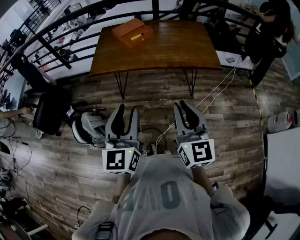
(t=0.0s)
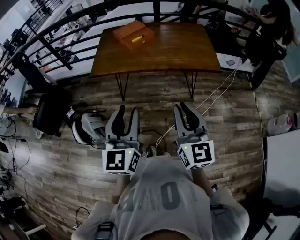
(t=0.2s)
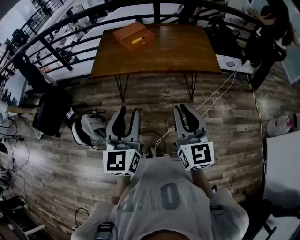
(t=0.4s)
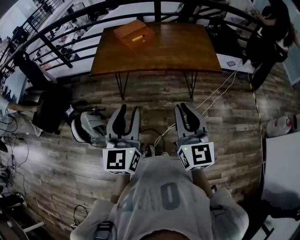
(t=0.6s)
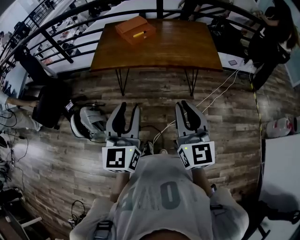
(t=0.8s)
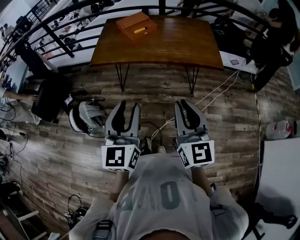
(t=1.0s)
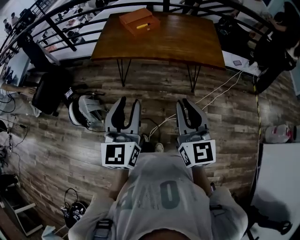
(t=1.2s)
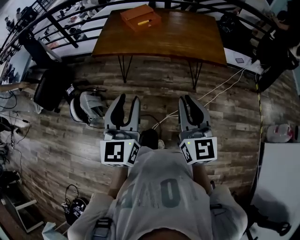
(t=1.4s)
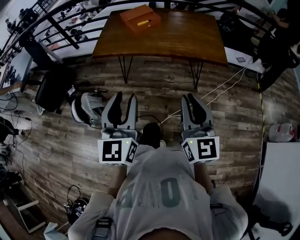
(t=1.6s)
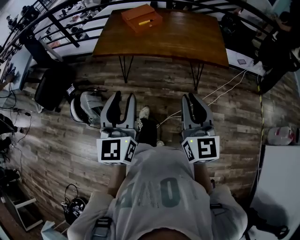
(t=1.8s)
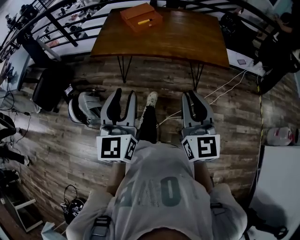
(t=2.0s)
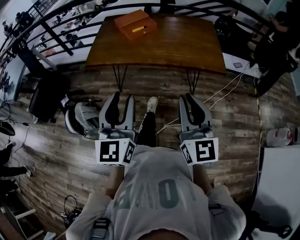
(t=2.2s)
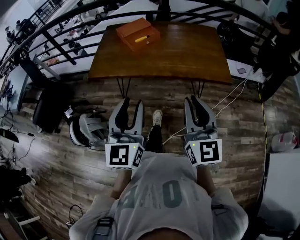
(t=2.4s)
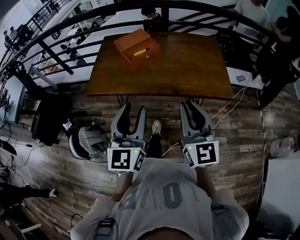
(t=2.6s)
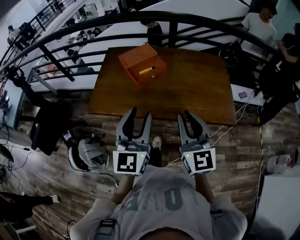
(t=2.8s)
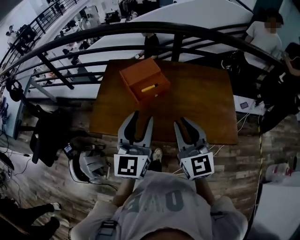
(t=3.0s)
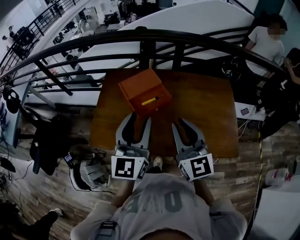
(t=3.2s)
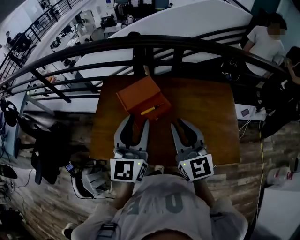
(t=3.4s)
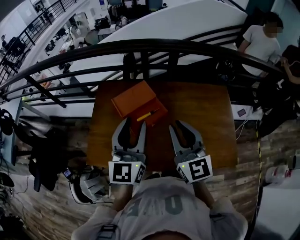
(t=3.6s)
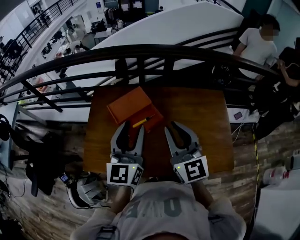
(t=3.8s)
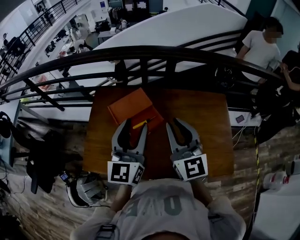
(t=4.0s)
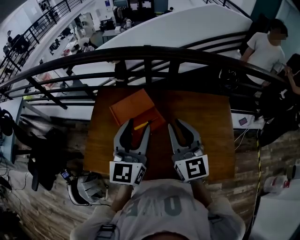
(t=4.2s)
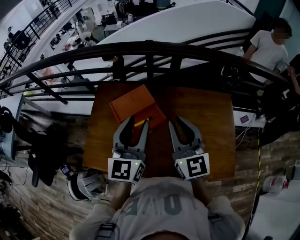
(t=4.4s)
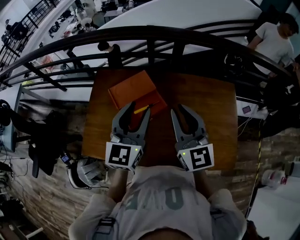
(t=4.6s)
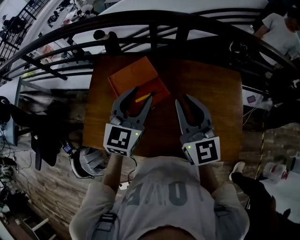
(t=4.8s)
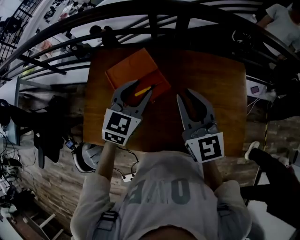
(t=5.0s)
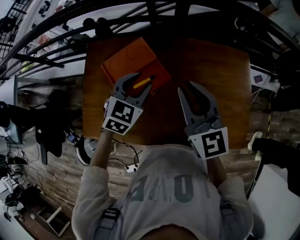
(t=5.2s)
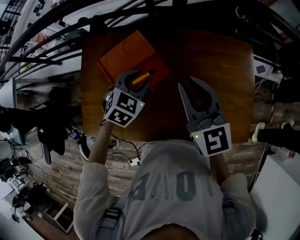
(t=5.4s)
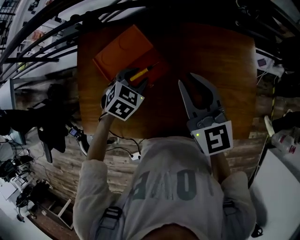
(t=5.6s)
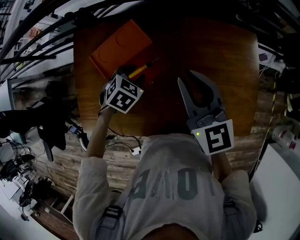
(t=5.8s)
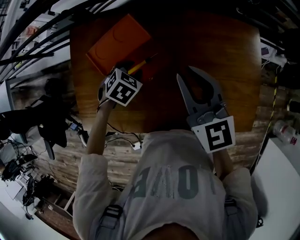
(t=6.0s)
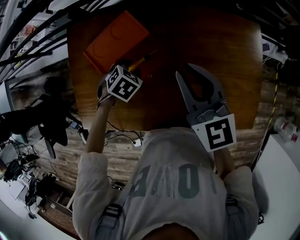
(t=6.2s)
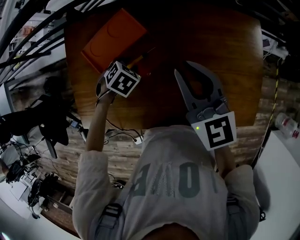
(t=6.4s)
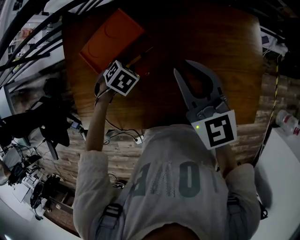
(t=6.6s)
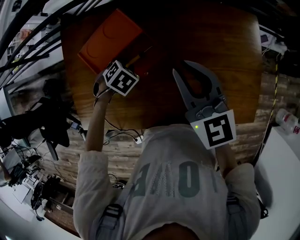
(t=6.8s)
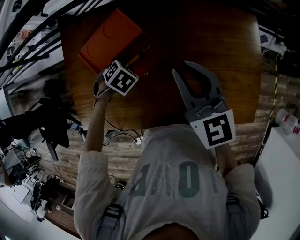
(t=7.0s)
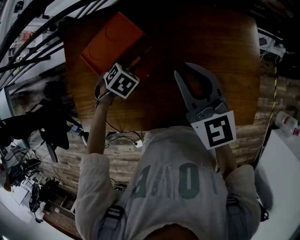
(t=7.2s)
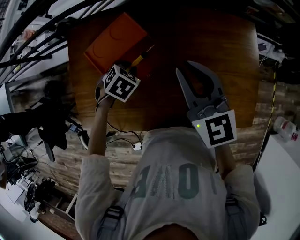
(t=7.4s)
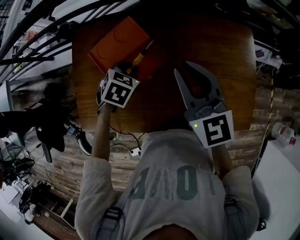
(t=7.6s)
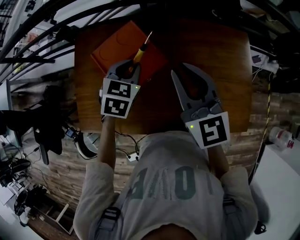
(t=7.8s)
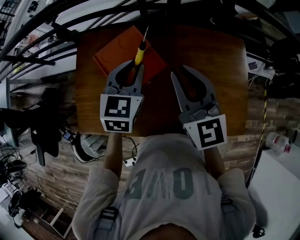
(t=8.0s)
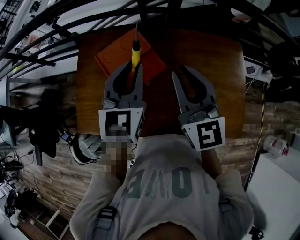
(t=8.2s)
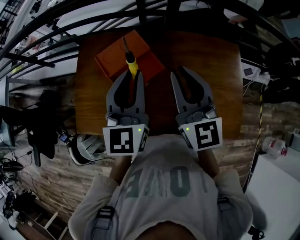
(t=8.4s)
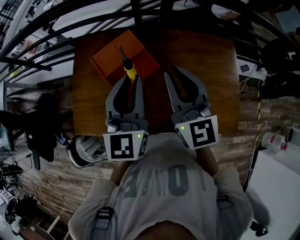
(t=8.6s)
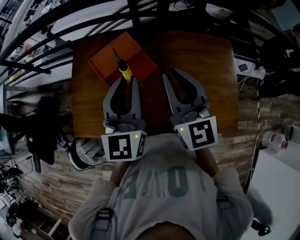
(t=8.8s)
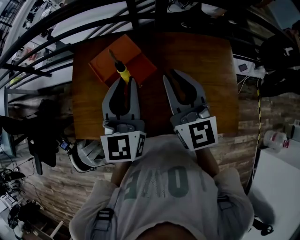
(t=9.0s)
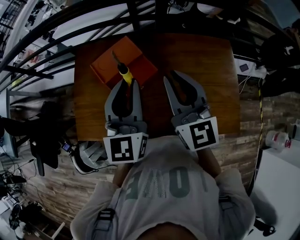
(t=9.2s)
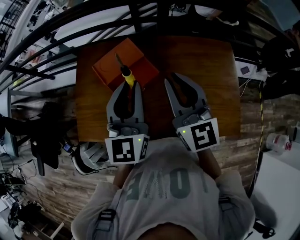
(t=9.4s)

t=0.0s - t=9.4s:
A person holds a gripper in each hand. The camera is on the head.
t=0.0s - t=1.6s: The right gripper goes about 5 cm to the right.
t=1.6s - t=3.2s: The two grippers travel together, forward, about 50 cm.
t=3.2s - t=4.8s: The right gripper shifts roughly 15 cm forward. Meanwhile the left gripper shifts about 15 cm forward and downward, and rotates some 20 degrees.
t=4.8s - t=6.2s: The left gripper goes about 30 cm downward, and angles its fingers downward, by approximately 60 degrees. Meanwhile the right gripper travels downward and forward by about 10 cm.
t=6.2s - t=7.8s: The left gripper shifts some 15 cm upward, and rotates some 30 degrees, while the right gripper shifts by about 5 cm.
t=7.8s - t=9.4s: The left gripper travels upward and backward by about 20 cm, and tips its fingers upward by approximately 50 degrees. Meanwhile the right gripper changes place by some 5 cm.

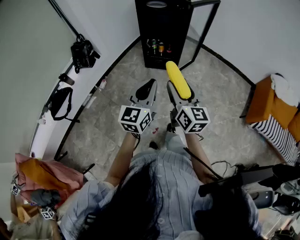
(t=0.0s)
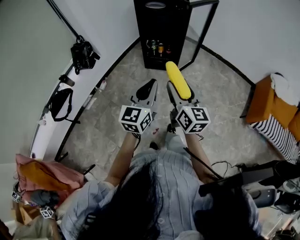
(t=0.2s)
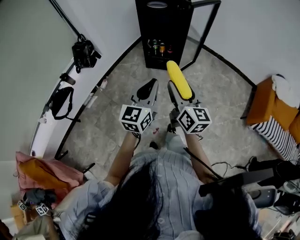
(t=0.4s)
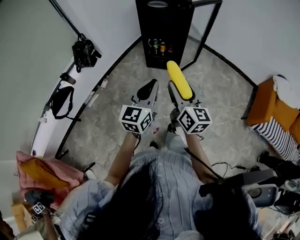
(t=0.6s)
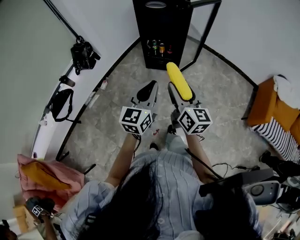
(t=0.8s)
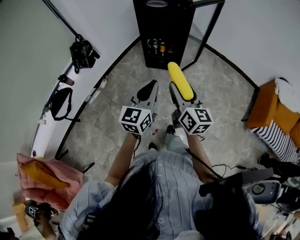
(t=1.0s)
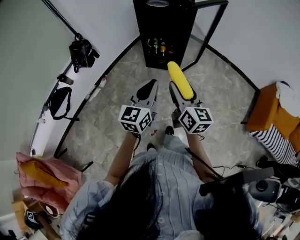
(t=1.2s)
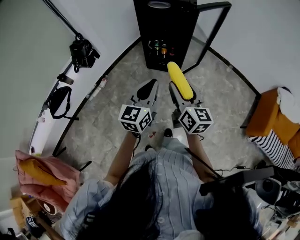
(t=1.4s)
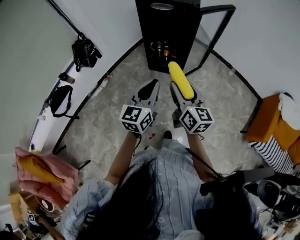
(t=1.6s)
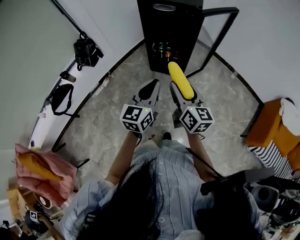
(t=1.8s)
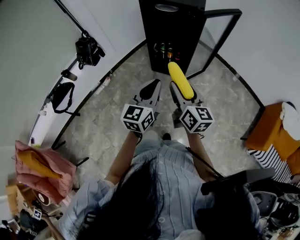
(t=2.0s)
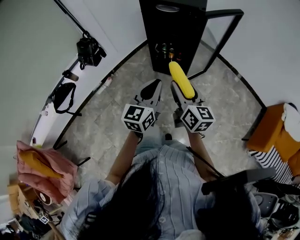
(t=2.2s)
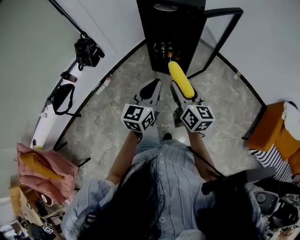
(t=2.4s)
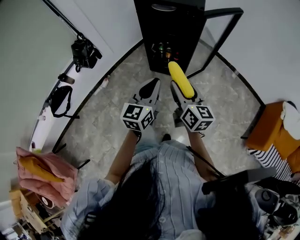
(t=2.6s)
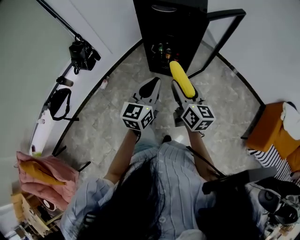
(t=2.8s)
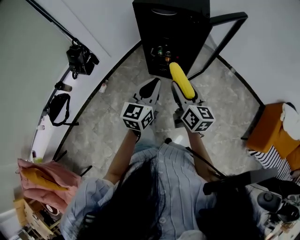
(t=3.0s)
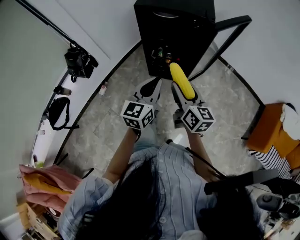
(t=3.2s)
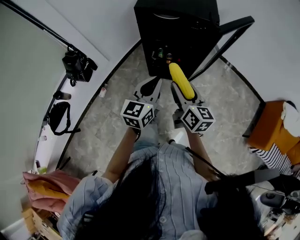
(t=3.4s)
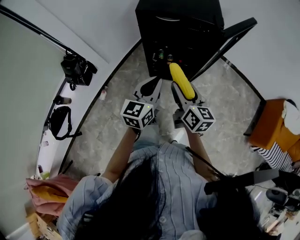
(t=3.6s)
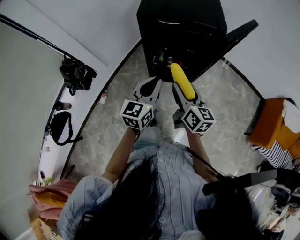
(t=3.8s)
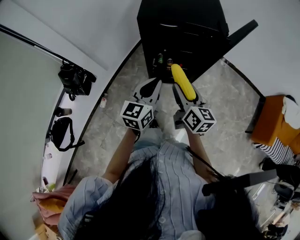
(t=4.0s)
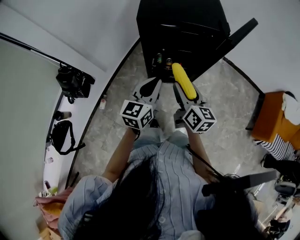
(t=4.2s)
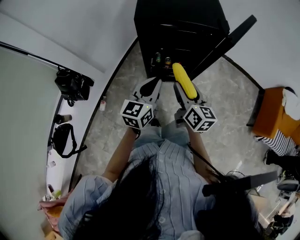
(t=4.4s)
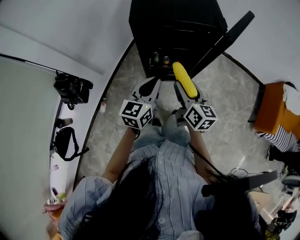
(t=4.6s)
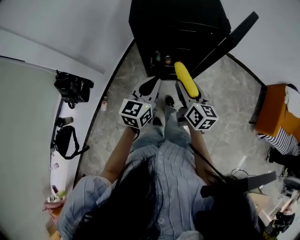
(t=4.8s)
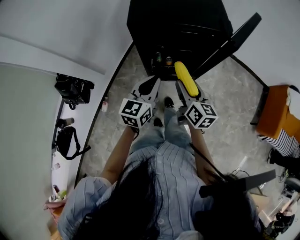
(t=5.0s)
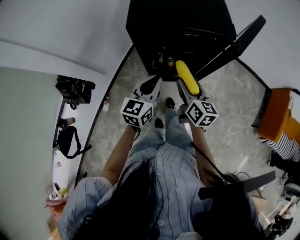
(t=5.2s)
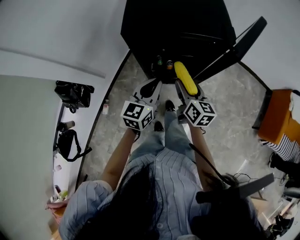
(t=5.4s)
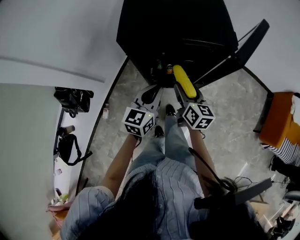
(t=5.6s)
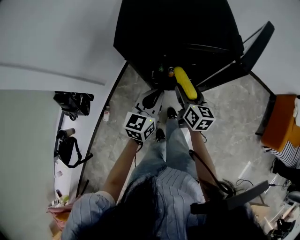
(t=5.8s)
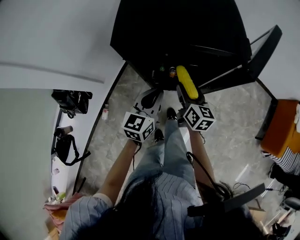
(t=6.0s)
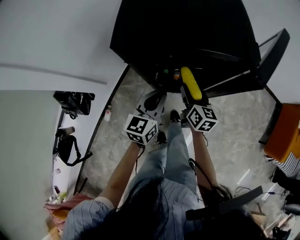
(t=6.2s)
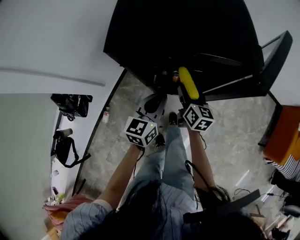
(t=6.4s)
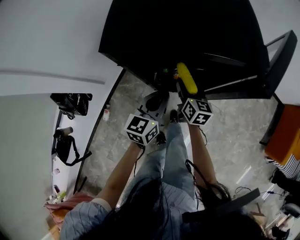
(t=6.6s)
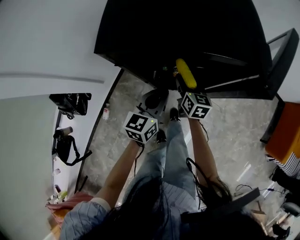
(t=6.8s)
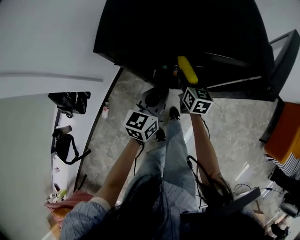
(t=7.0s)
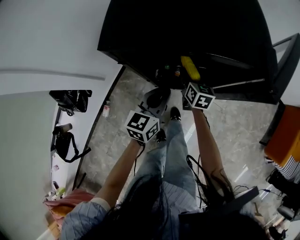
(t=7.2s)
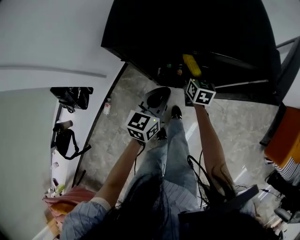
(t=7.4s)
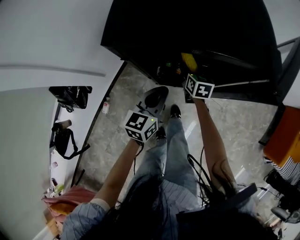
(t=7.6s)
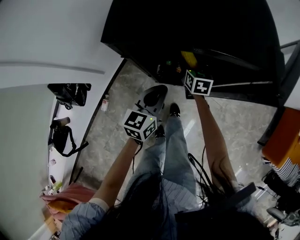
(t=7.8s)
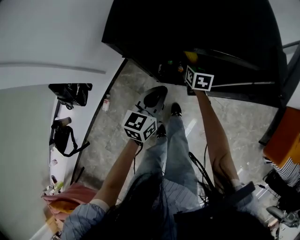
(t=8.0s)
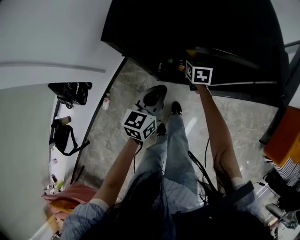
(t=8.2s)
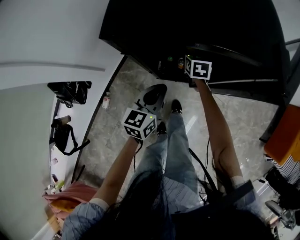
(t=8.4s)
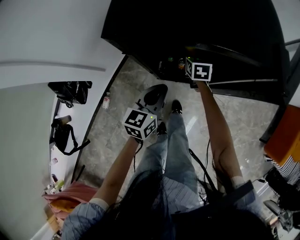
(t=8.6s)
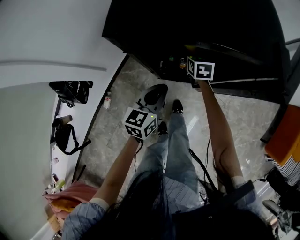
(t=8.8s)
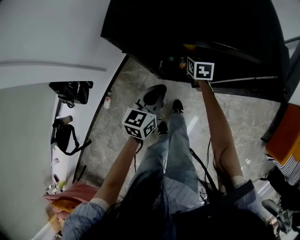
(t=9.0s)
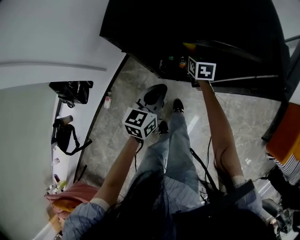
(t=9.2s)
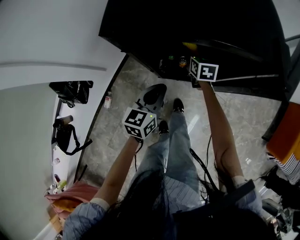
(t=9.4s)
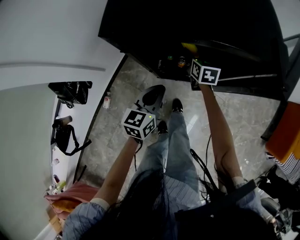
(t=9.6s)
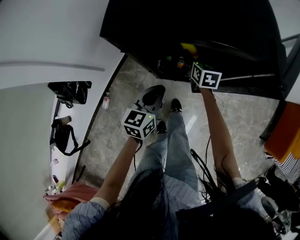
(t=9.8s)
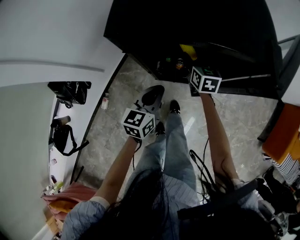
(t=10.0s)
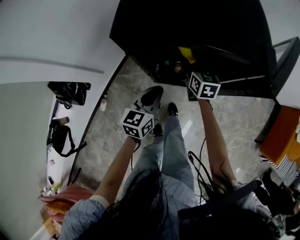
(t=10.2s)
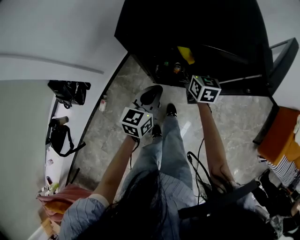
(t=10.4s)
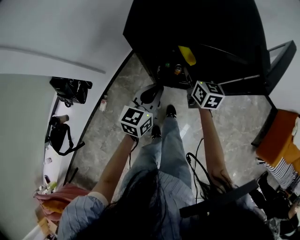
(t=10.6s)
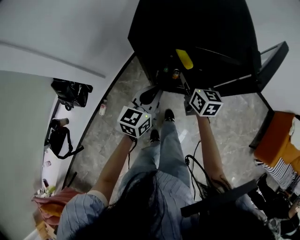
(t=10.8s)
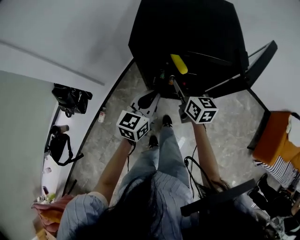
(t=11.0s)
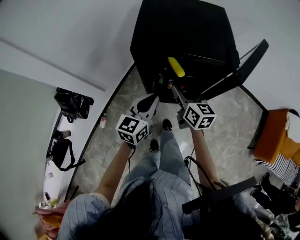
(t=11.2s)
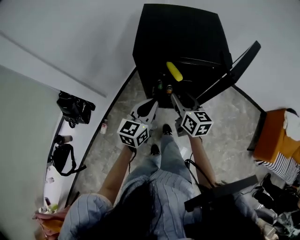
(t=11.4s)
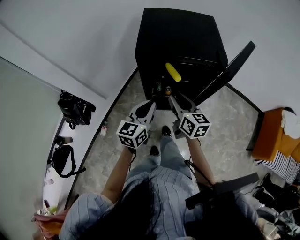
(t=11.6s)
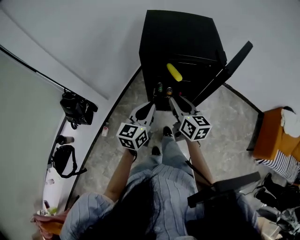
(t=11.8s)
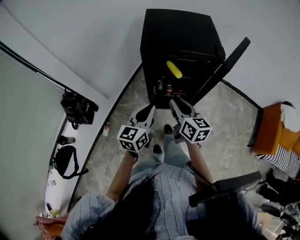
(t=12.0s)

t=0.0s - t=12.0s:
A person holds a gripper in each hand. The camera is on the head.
t=0.0s - t=1.6s: Both grippers move forward, about 15 cm.
t=1.6s - t=3.0s: Both grippers travel together forward, approximately 15 cm.
t=3.0s - t=4.4s: The two grippers go about 20 cm forward and to the left.
t=4.4s - t=6.0s: The grippers both shift forward and downward by approximately 20 cm.
t=6.0s - t=7.6s: The left gripper moves downward, some 5 cm, while the right gripper goes some 20 cm forward and downward.
t=7.6s - t=9.0s: The grippers stay close to where they were, moving slightly.
t=9.0s - t=10.4s: The right gripper goes some 10 cm upward and backward.
t=10.4s - t=12.0s: The left gripper goes roughly 20 cm upward and backward, while the right gripper shifts some 30 cm backward and upward, and closes.

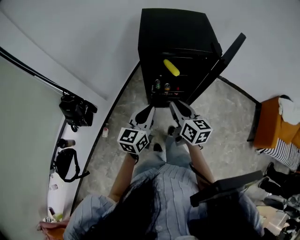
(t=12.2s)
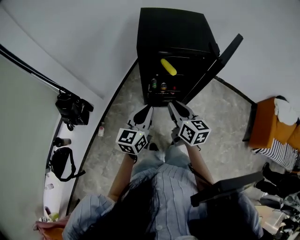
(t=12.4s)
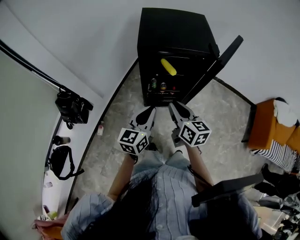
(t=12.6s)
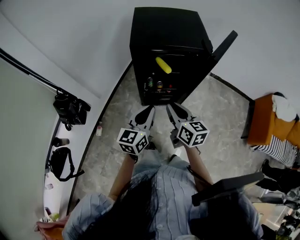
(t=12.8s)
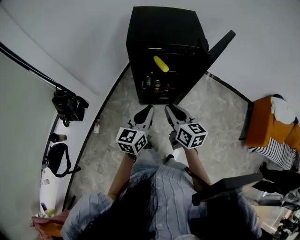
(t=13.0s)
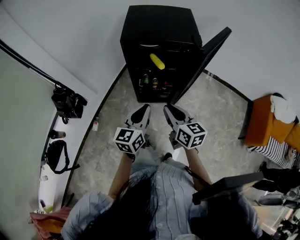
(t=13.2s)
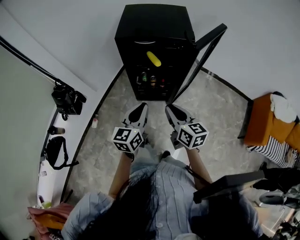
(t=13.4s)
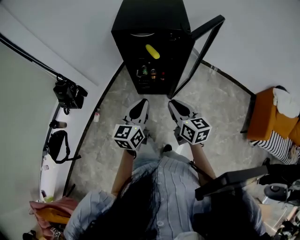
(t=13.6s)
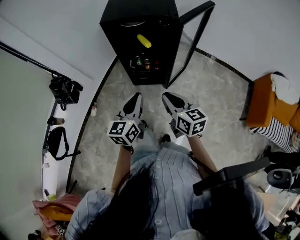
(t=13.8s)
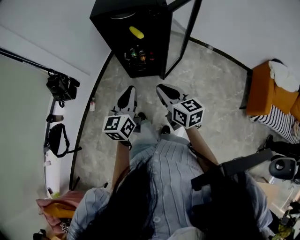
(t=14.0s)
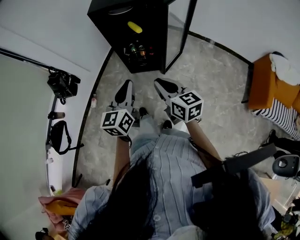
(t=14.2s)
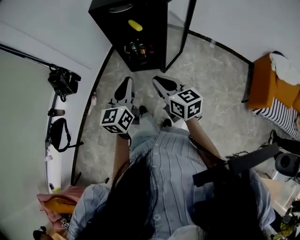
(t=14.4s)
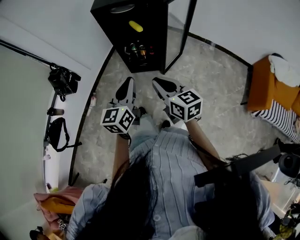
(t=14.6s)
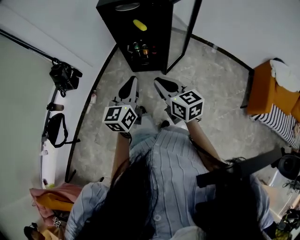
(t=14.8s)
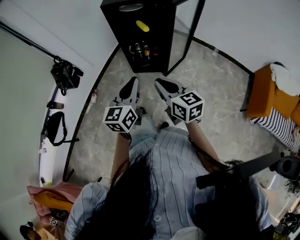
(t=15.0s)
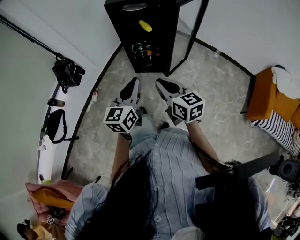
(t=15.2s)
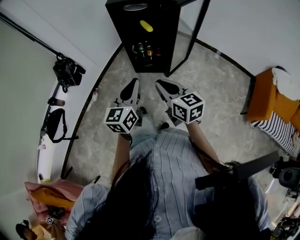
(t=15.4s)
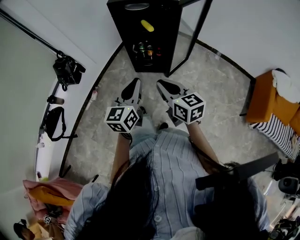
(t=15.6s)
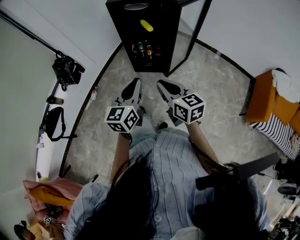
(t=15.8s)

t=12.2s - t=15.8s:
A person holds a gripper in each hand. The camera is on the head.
t=12.2s - t=14.0s: The two grippers go approximately 25 cm backward and to the right.
t=14.0s - t=15.8s: Both grippers travel together backward, approximately 5 cm.
